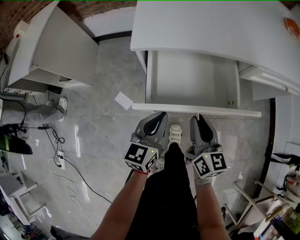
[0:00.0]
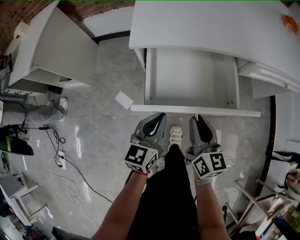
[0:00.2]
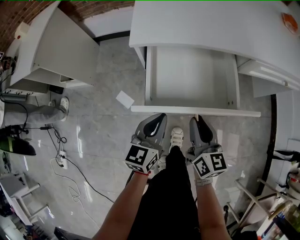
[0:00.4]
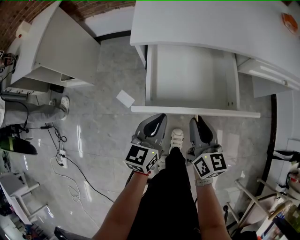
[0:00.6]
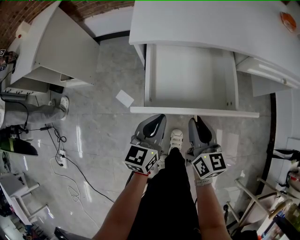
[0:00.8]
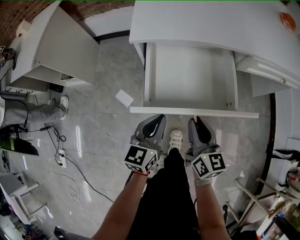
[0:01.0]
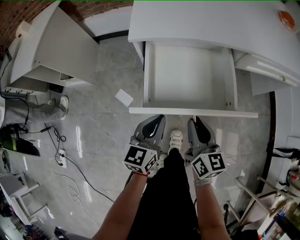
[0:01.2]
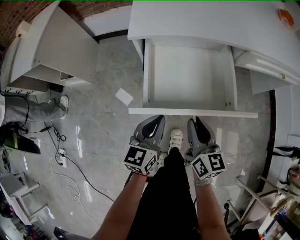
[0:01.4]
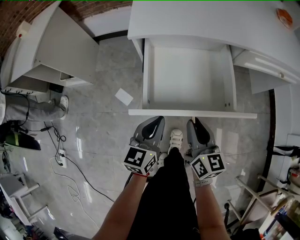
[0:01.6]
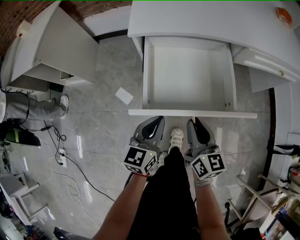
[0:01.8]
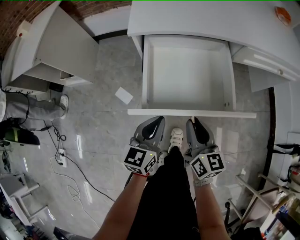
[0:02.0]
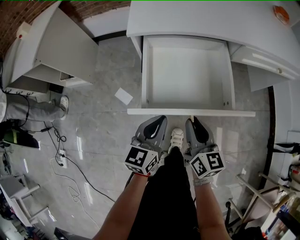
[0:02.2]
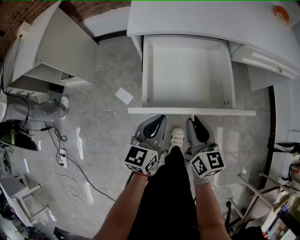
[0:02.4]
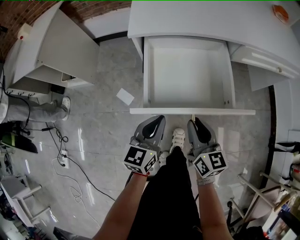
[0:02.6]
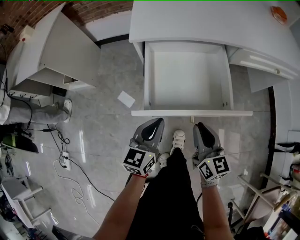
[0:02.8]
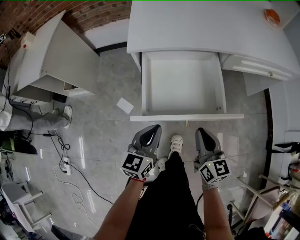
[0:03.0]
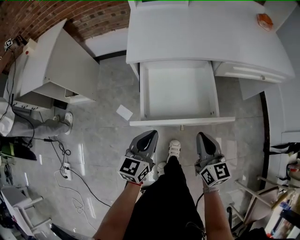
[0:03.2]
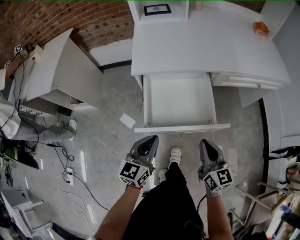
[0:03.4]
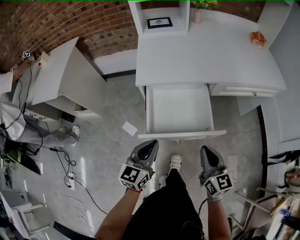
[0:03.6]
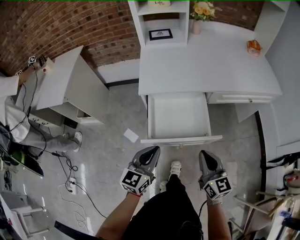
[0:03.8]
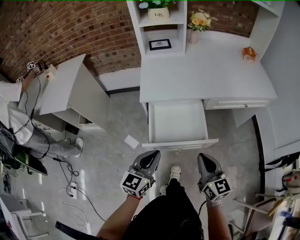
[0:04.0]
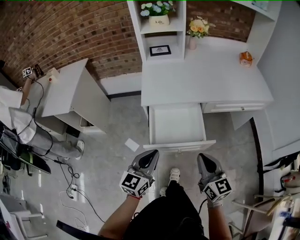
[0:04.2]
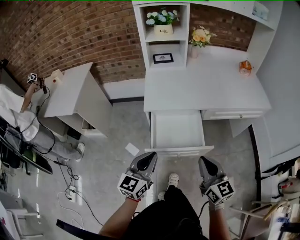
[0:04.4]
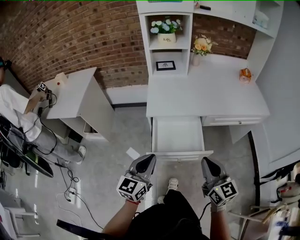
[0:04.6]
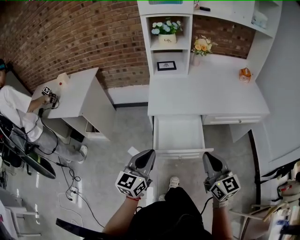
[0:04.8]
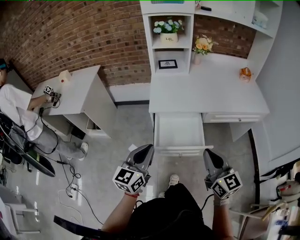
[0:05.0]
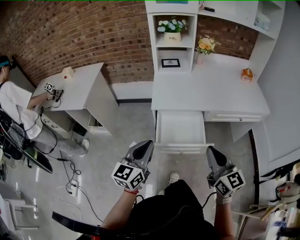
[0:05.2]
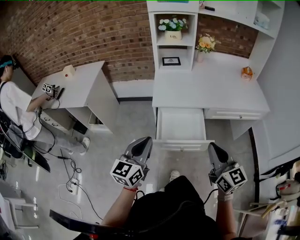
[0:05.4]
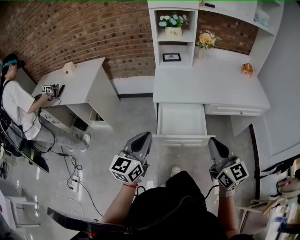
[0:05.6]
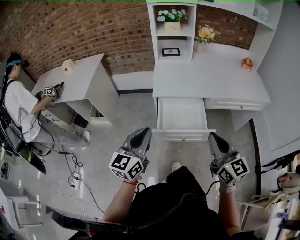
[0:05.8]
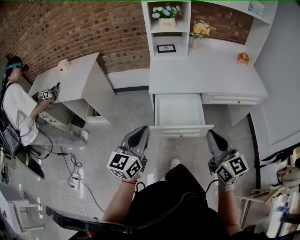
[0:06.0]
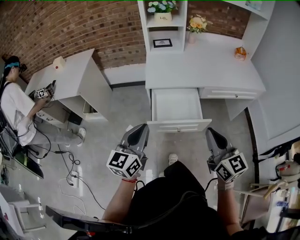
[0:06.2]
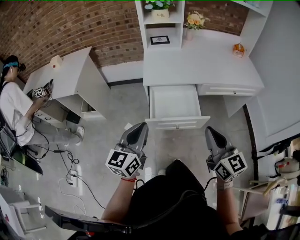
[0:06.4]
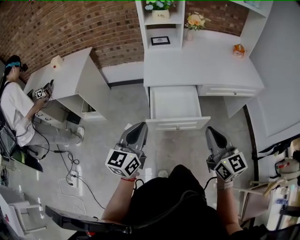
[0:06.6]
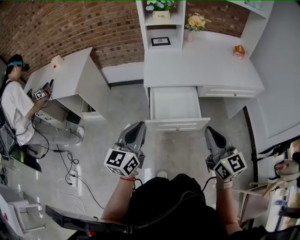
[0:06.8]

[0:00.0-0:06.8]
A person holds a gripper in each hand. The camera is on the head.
0:00.0 to 0:01.4: The grippers both shift backward by some 5 cm.
0:01.4 to 0:02.8: The grippers make only small movements.
0:02.8 to 0:04.0: The two grippers go some 20 cm upward.
0:04.0 to 0:05.4: The left gripper travels upward and to the left by roughly 15 cm. Meanwhile the right gripper heads upward, covering about 15 cm.
0:05.4 to 0:06.8: There are only small adjustments of the grippers.

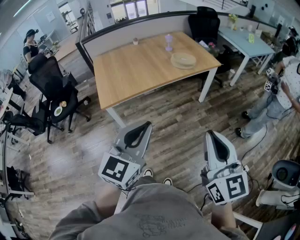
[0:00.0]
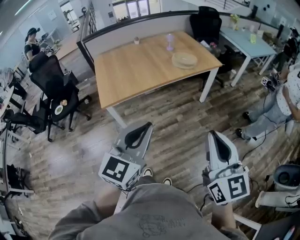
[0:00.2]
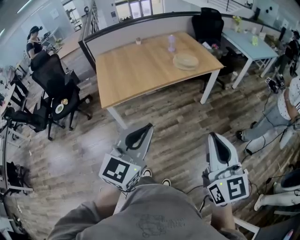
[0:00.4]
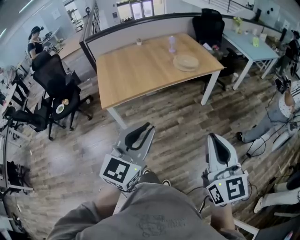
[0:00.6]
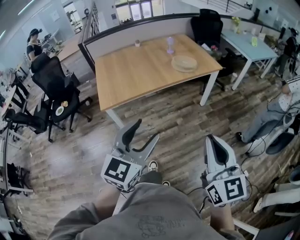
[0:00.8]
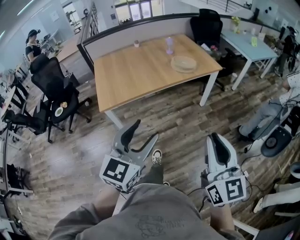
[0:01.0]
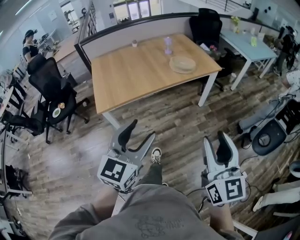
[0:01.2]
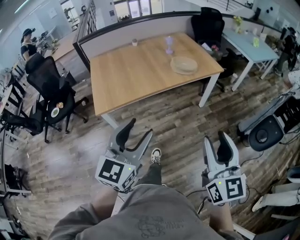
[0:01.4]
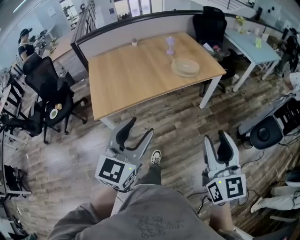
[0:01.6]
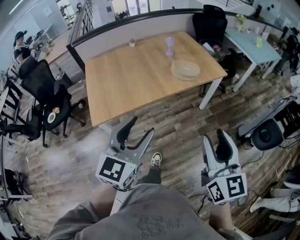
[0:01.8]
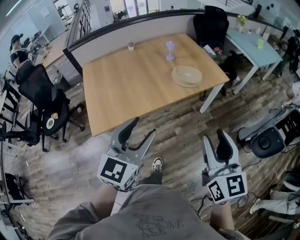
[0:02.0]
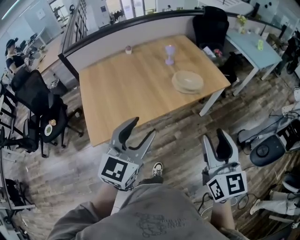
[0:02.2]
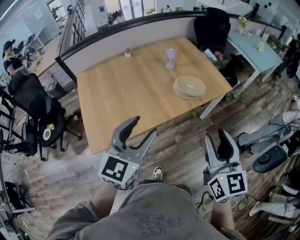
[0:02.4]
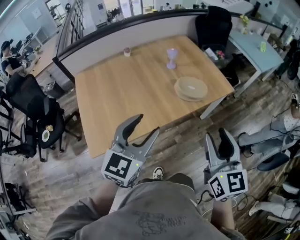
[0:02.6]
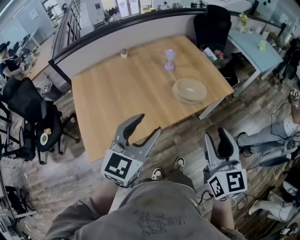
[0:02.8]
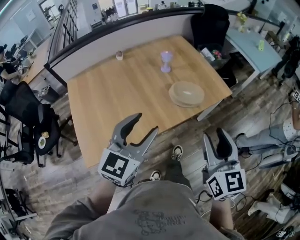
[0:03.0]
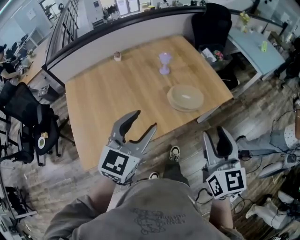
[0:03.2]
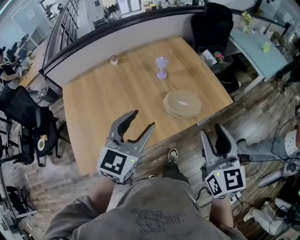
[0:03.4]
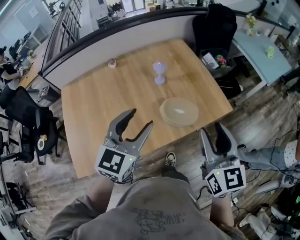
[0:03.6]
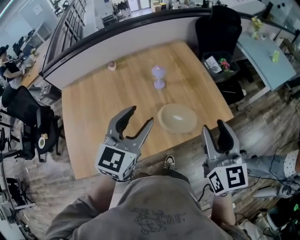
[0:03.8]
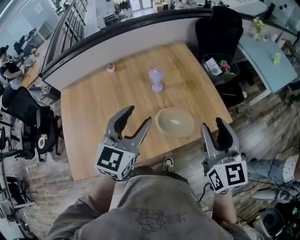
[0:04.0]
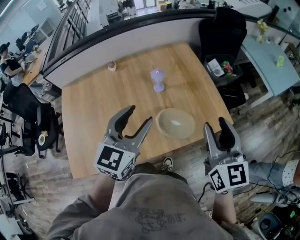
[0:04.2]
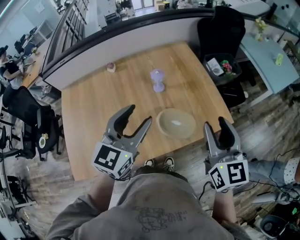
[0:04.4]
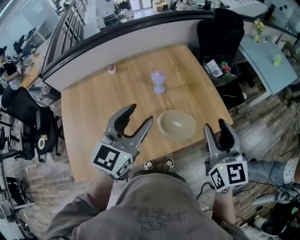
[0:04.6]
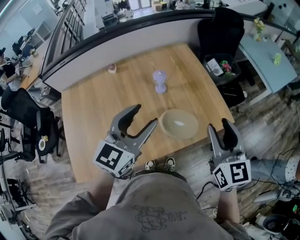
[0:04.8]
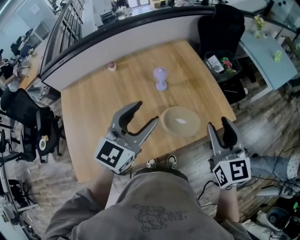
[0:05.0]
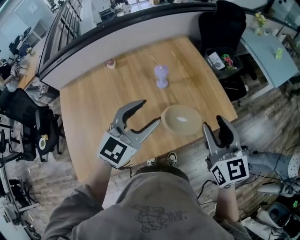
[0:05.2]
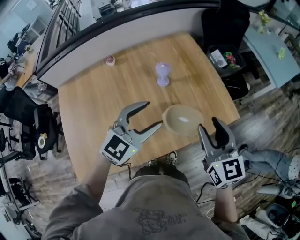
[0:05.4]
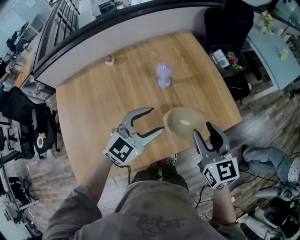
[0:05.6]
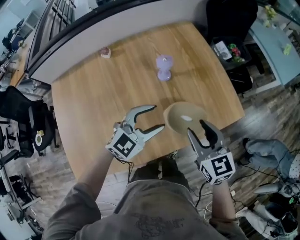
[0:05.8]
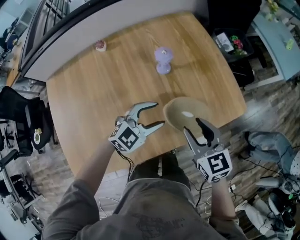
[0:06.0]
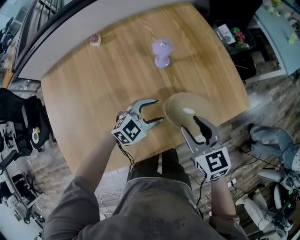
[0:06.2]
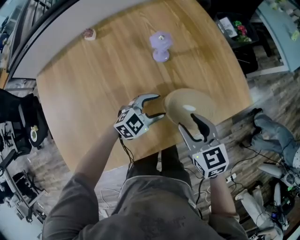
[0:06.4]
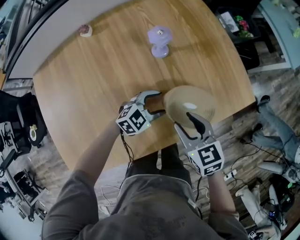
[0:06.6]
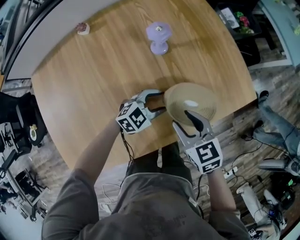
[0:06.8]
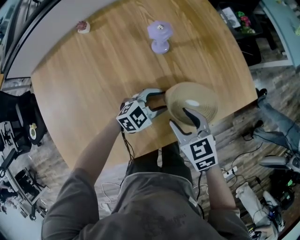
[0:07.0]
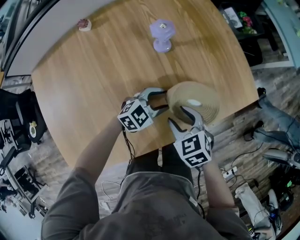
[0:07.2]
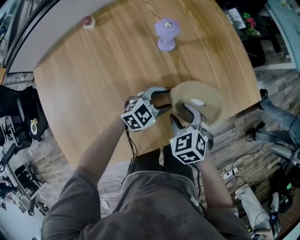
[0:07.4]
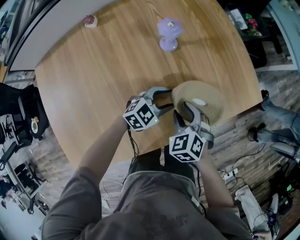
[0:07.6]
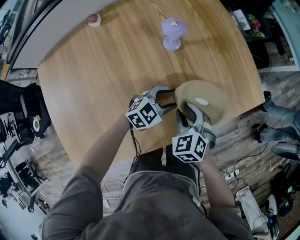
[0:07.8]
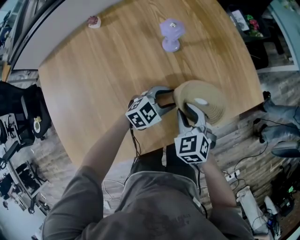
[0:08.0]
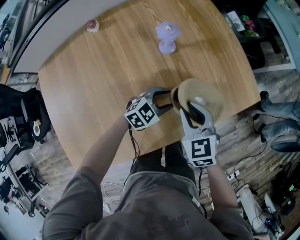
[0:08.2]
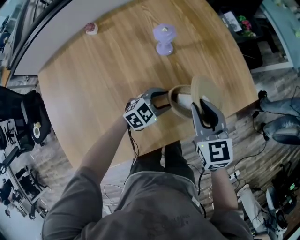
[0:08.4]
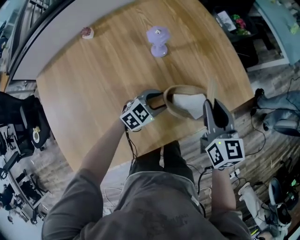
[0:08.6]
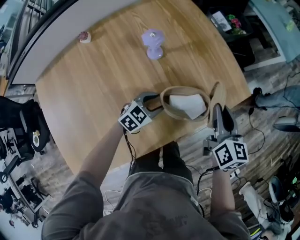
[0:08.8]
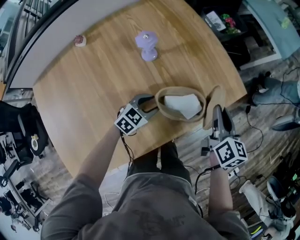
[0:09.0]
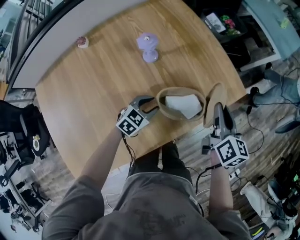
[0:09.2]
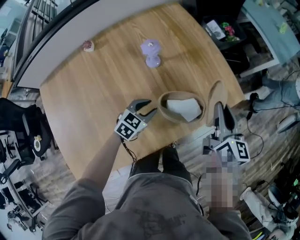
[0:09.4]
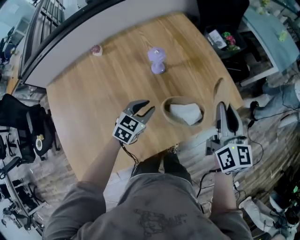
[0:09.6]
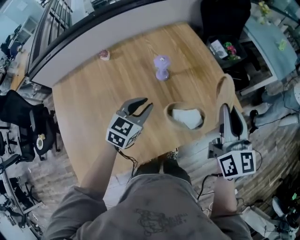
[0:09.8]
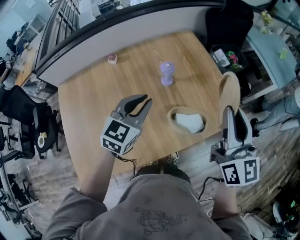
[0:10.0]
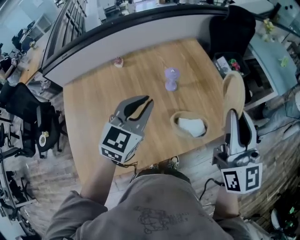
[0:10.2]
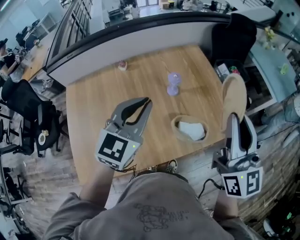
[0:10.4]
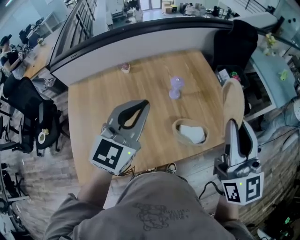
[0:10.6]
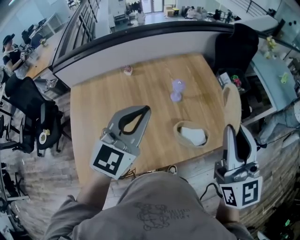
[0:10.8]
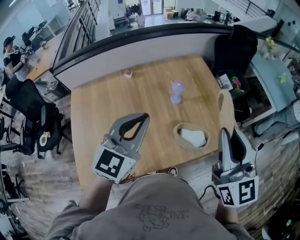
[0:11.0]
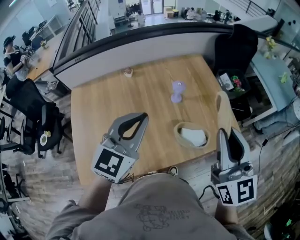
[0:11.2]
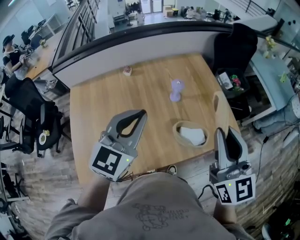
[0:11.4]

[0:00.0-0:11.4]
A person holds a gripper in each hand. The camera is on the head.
0:00.0 to 0:01.4: Both grippers travel together forward, roughly 10 cm. The right gripper opens its fingers. The left gripper opens.
0:01.4 to 0:02.8: Both grippers travel together forward, roughly 35 cm.
0:02.8 to 0:04.2: Both grippers travel together forward, some 30 cm.
0:04.2 to 0:05.6: The left gripper travels downward by roughly 10 cm, and rotates roughly 30 degrees; the right gripper moves downward and to the left, about 15 cm.
0:05.6 to 0:07.2: Both grippers travel together downward, approximately 25 cm. The left gripper swivels about 30 degrees. Meanwhile the right gripper tilts its fingers about 30 degrees downward.
0:07.2 to 0:08.6: The right gripper goes approximately 20 cm upward, forward and to the right, rotates roughly 50 degrees, and closes its fingers.
0:08.6 to 0:10.0: Both grippers travel together upward, approximately 25 cm. The left gripper swivels some 40 degrees, and closes up; the right gripper rotates some 30 degrees.
0:10.0 to 0:11.4: The right gripper travels backward and to the left by about 10 cm, while the left gripper travels upward and backward by some 15 cm.

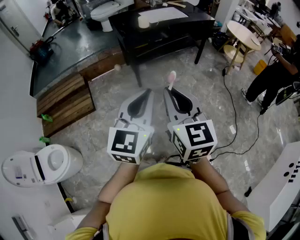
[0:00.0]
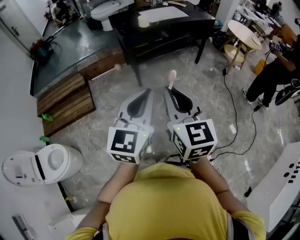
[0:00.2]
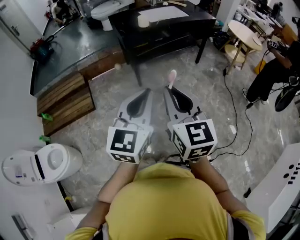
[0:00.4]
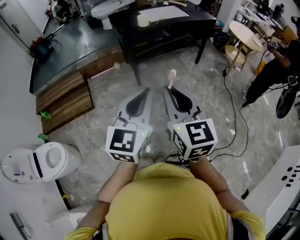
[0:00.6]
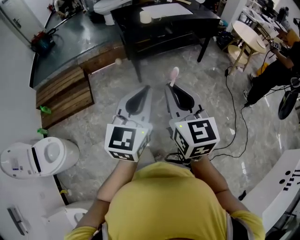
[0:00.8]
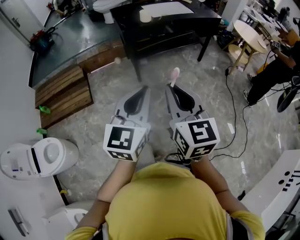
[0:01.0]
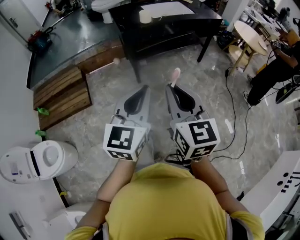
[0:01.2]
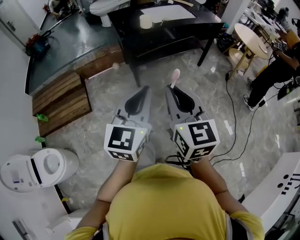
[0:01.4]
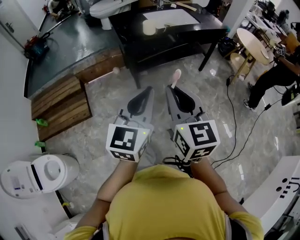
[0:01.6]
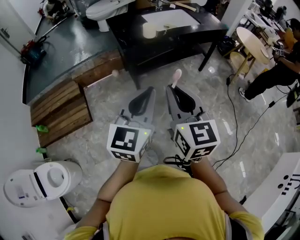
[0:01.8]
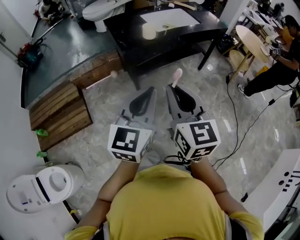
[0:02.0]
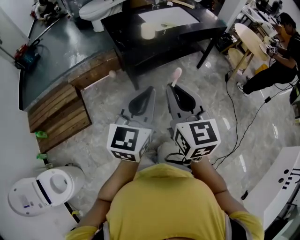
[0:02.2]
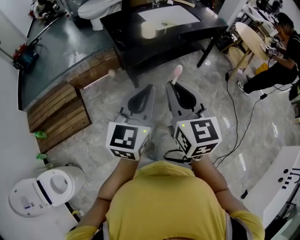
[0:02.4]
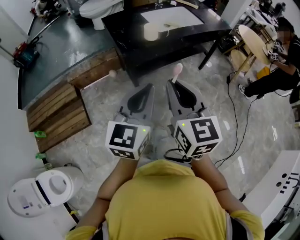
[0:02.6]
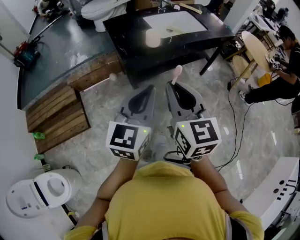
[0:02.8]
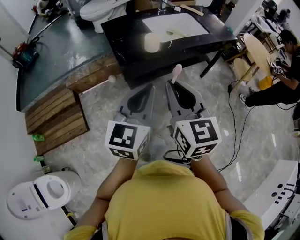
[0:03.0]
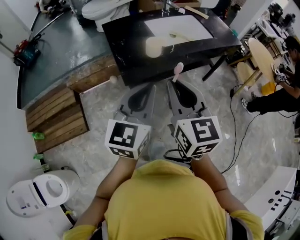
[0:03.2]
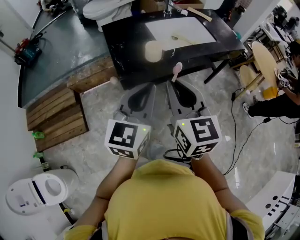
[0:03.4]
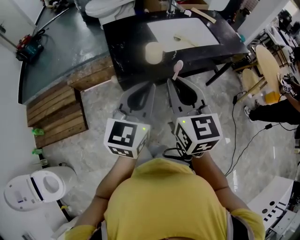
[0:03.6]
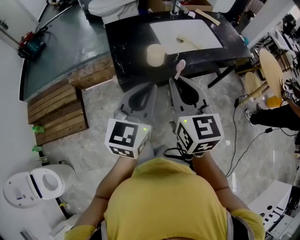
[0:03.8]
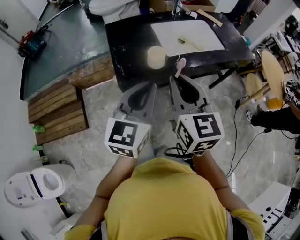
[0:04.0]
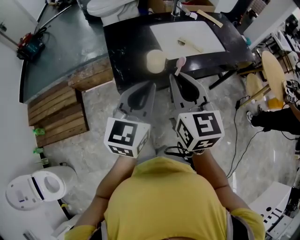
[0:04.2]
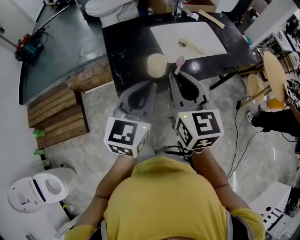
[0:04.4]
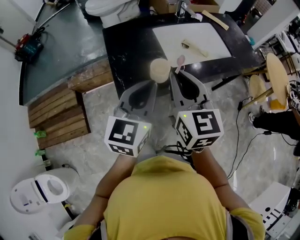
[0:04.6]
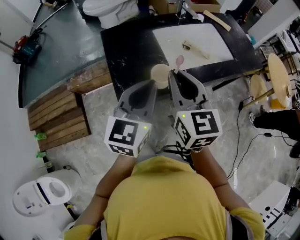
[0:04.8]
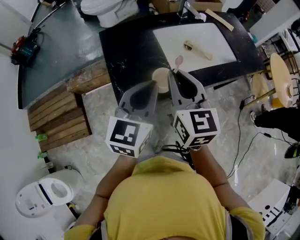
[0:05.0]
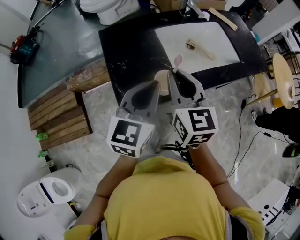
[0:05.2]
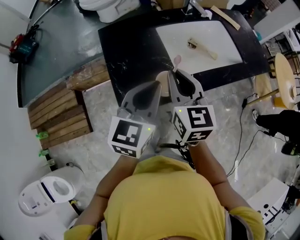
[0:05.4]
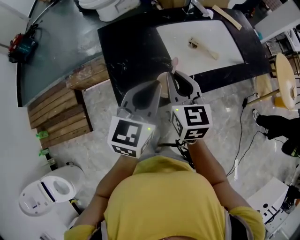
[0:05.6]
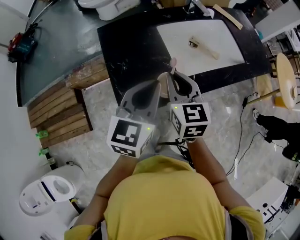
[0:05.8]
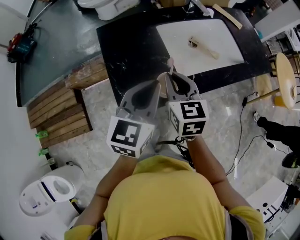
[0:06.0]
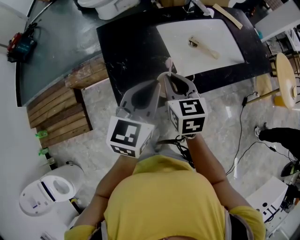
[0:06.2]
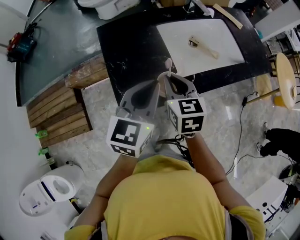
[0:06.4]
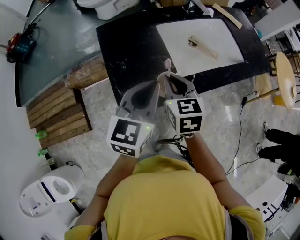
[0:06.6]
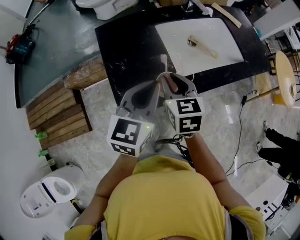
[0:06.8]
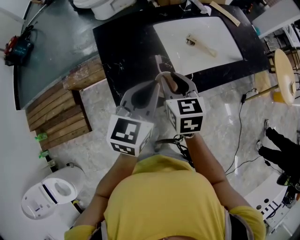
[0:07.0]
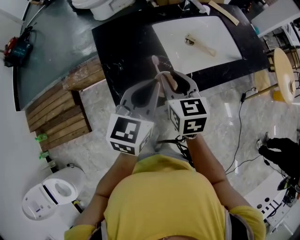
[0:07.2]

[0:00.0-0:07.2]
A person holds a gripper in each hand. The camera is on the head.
0:00.0 to 0:01.4: Both grippers travel together forward, some 15 cm.
0:01.4 to 0:02.8: The two grippers go about 25 cm forward.
0:02.8 to 0:04.4: Both grippers travel together forward, some 25 cm.
0:04.4 to 0:05.8: The grippers both shift forward and downward by some 15 cm.
0:05.8 to 0:07.2: The grippers stay close to where they were, moving slightly.
